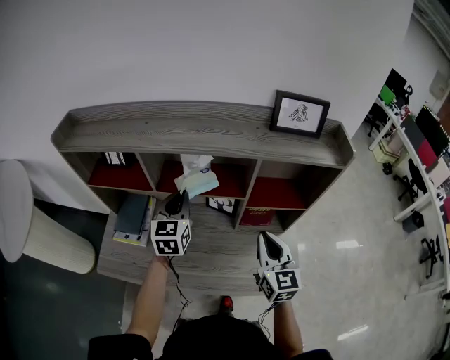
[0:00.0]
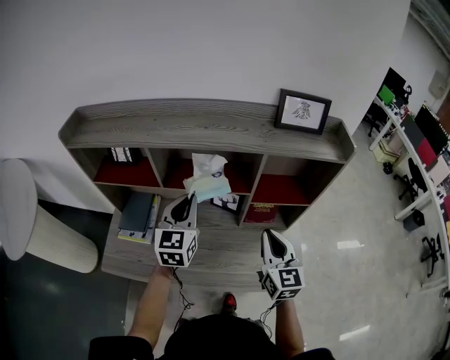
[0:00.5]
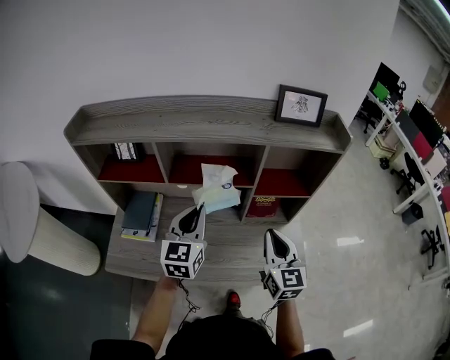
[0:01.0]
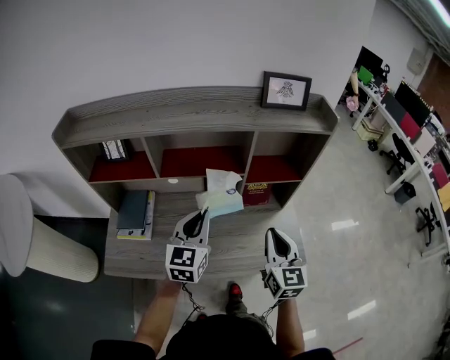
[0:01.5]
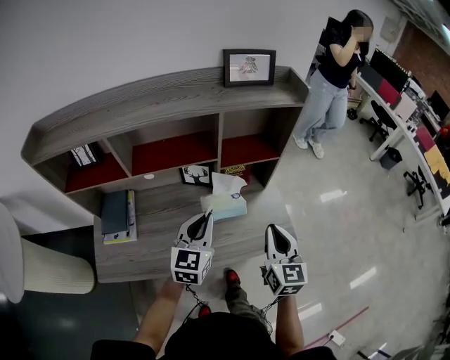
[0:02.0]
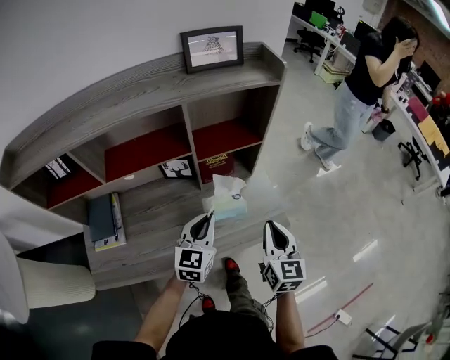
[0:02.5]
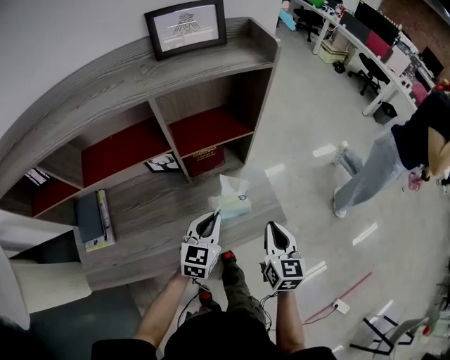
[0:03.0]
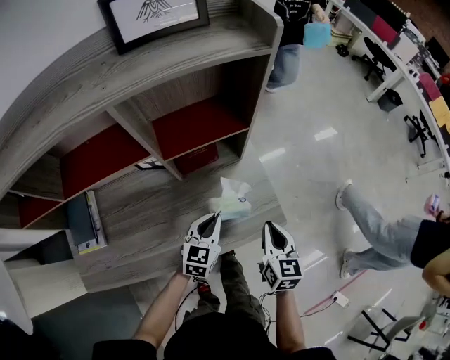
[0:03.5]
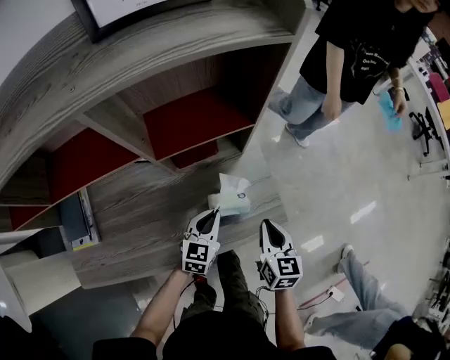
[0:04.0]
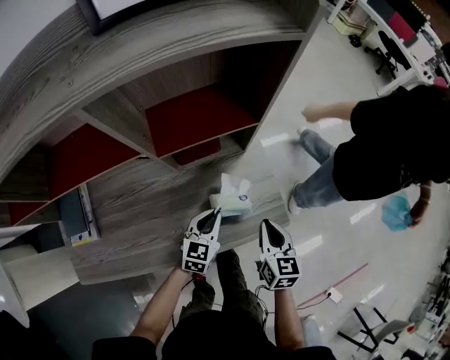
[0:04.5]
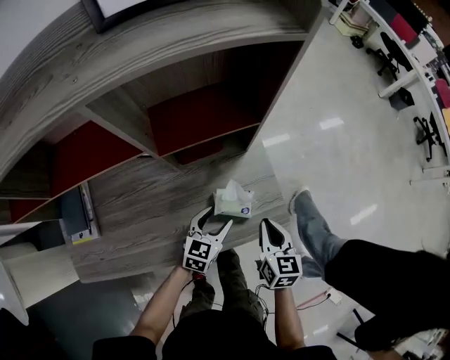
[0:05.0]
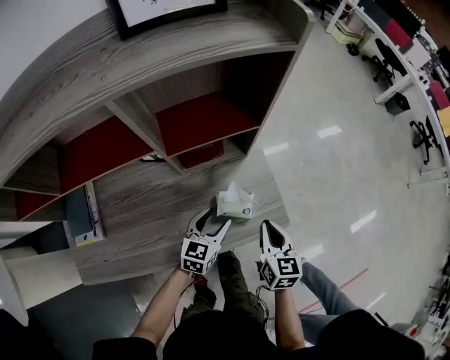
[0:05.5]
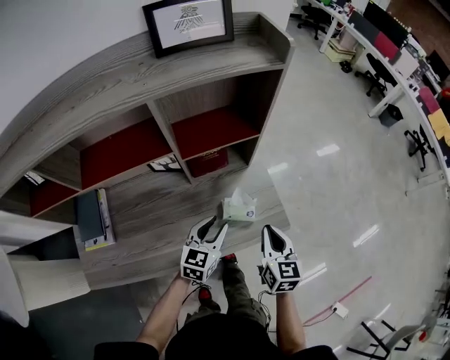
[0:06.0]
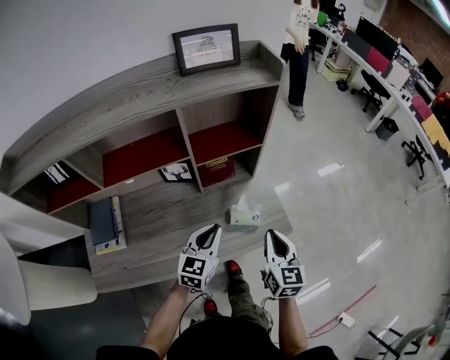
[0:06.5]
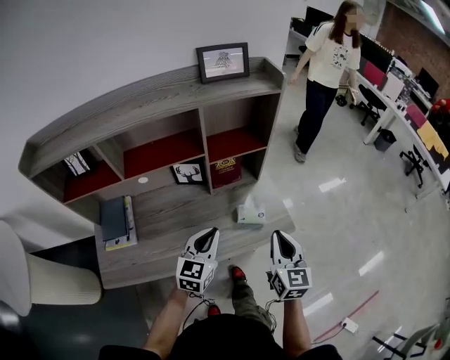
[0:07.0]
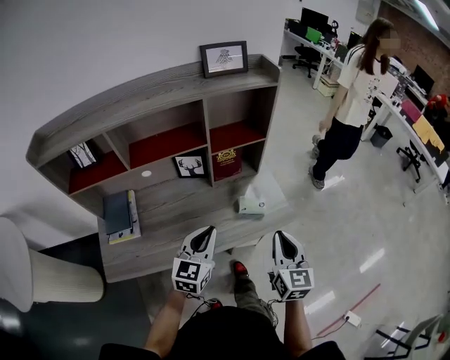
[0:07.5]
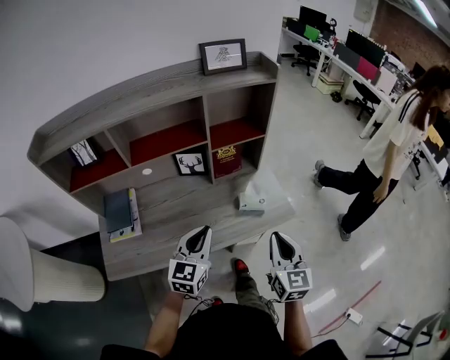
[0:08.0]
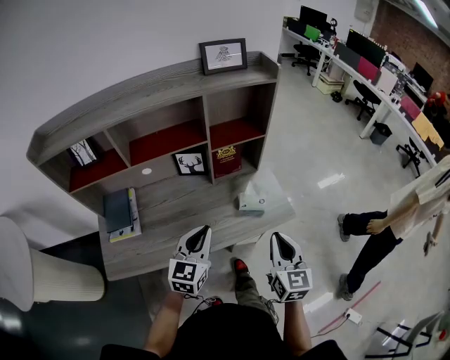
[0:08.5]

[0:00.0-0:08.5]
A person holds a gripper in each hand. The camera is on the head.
0:00.0 to 0:02.0: Both grippers move backward and to the right, approximately 15 cm. The left gripper turns by approximately 30 degrees, while the right gripper turns by roughly 20 degrees.
0:02.0 to 0:04.0: The grippers both shift downward and to the right by about 25 cm. The left gripper changes its angle by approximately 20 degrees; the right gripper changes its angle by approximately 20 degrees.
0:04.0 to 0:06.5: Both grippers move upward and backward, roughly 15 cm. The left gripper opens, then closes once more.
0:06.5 to 0:08.5: The right gripper travels backward and upward by about 15 cm, while the left gripper shifts about 15 cm backward, upward and to the left.

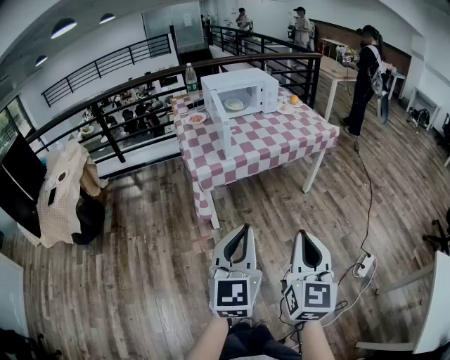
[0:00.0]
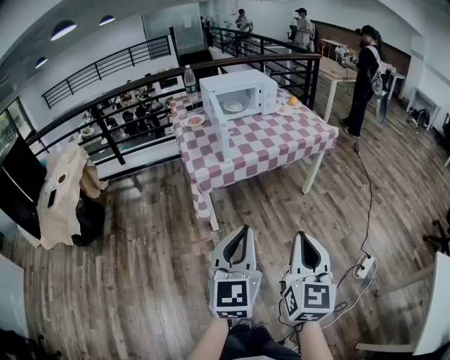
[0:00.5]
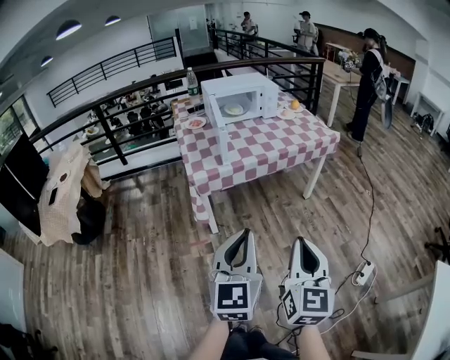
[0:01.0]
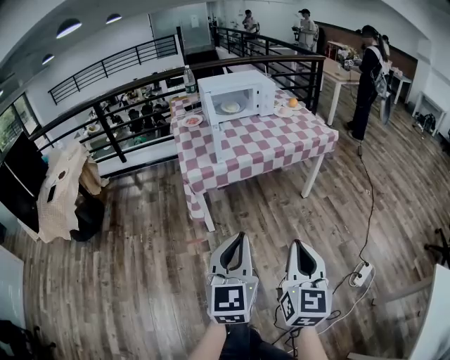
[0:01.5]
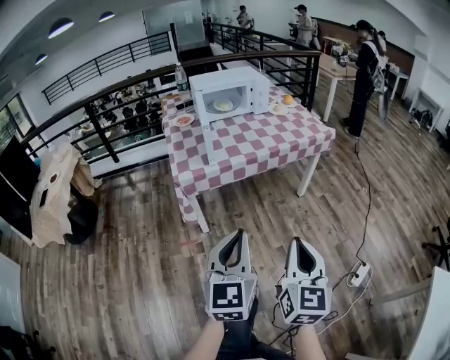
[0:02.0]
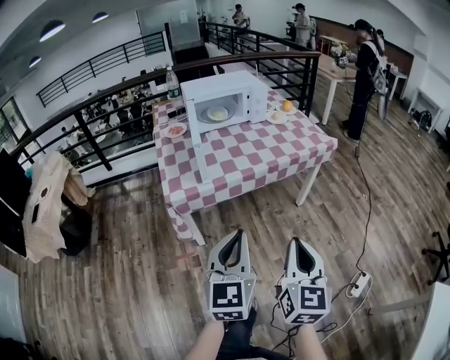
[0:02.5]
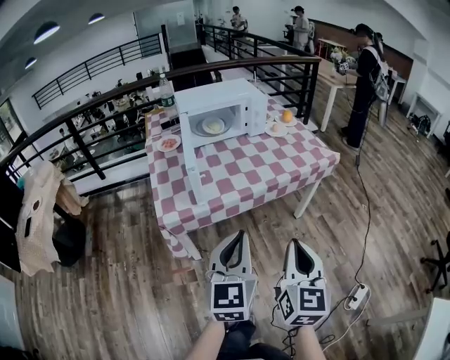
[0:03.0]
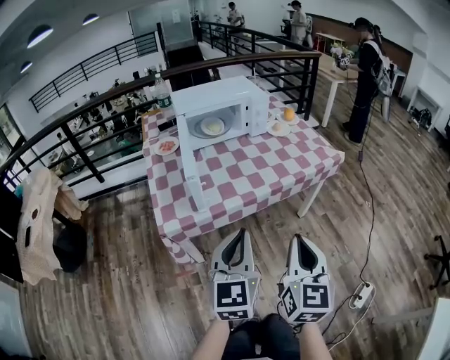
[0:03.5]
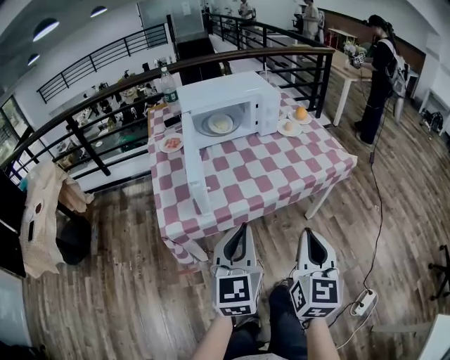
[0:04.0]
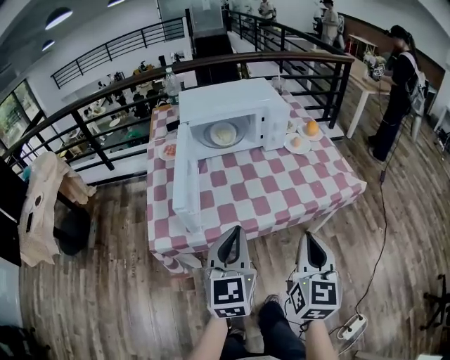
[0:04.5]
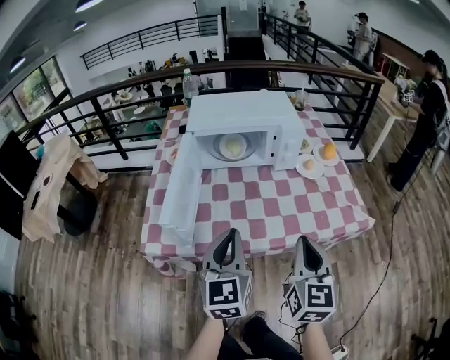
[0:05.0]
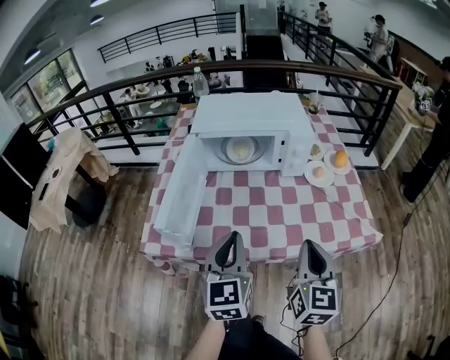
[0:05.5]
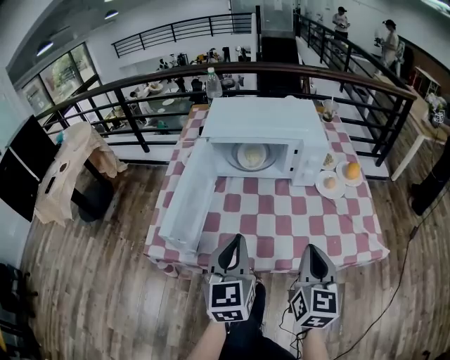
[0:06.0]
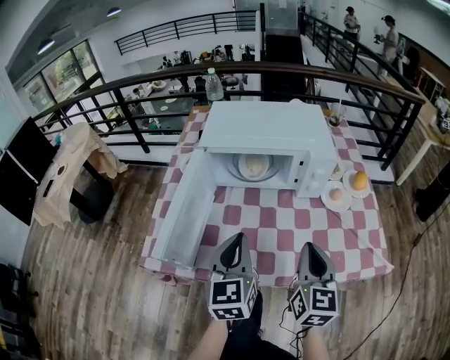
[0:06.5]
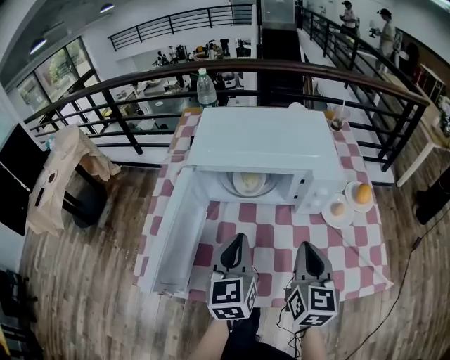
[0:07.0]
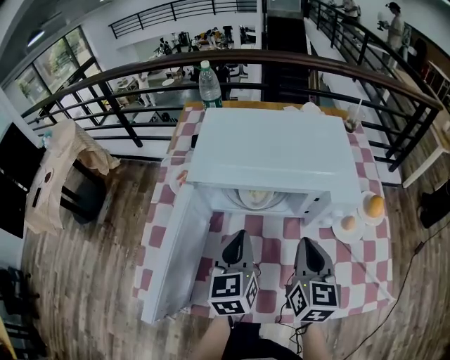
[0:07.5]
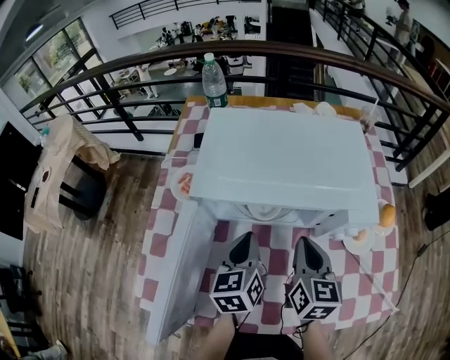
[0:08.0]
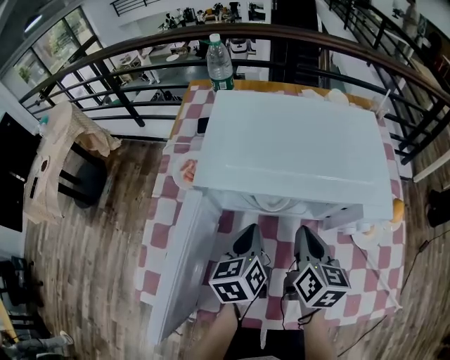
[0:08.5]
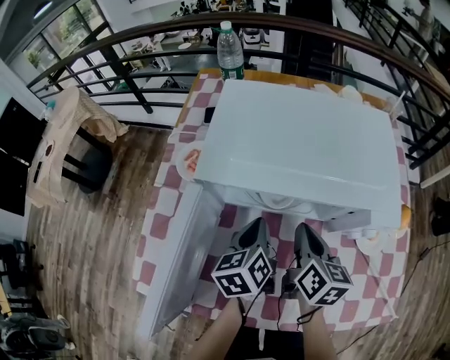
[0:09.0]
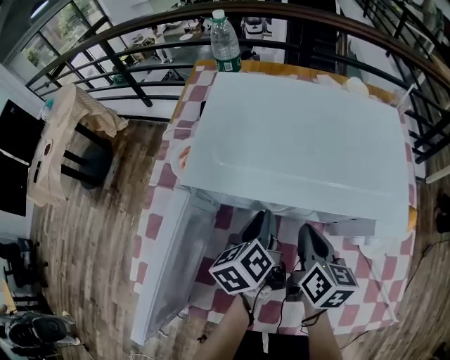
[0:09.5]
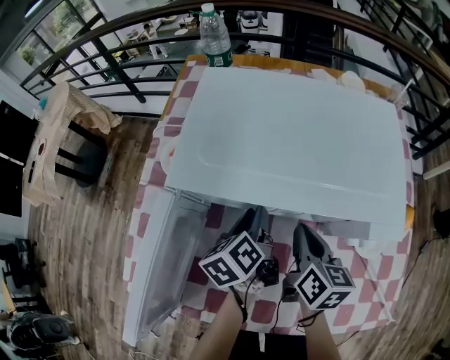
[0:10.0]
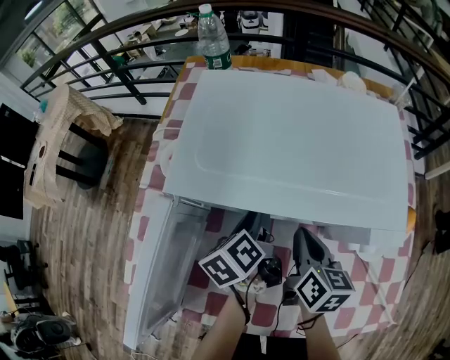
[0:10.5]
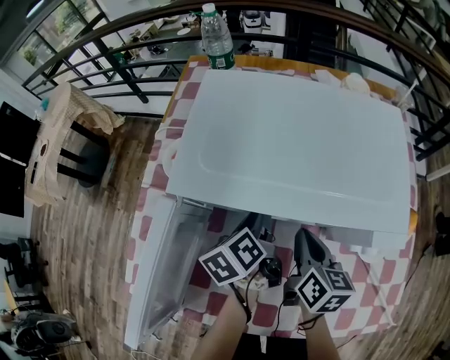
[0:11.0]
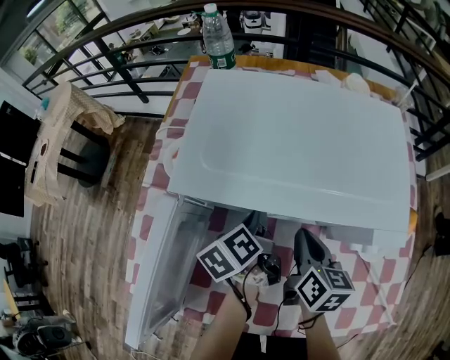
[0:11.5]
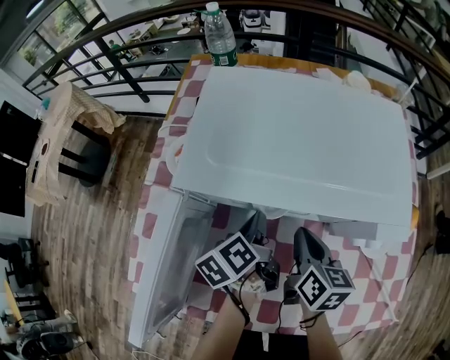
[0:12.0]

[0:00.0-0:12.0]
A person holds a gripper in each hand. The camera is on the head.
0:00.0 to 0:02.0: The grippers both shift to the right and forward by some 10 cm.
0:02.0 to 0:04.0: Both grippers move forward, some 30 cm.
0:04.0 to 0:06.0: Both grippers move forward, some 25 cm. The right gripper changes its angle by some 20 degrees. The left gripper rotates about 30 degrees.
0:06.0 to 0:08.0: Both grippers travel together forward, approximately 30 cm. The left gripper turns by roughly 20 degrees.
0:08.0 to 0:10.0: The left gripper goes some 10 cm downward and forward, rotates roughly 30 degrees, and opens, while the right gripper shifts about 5 cm downward.
0:10.0 to 0:12.0: The left gripper closes up.

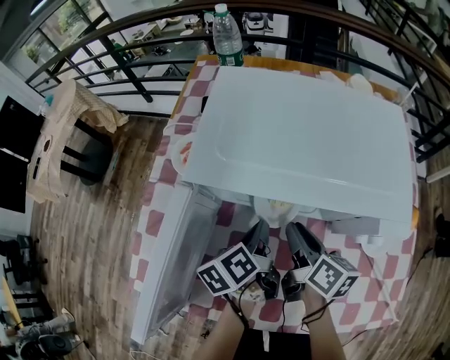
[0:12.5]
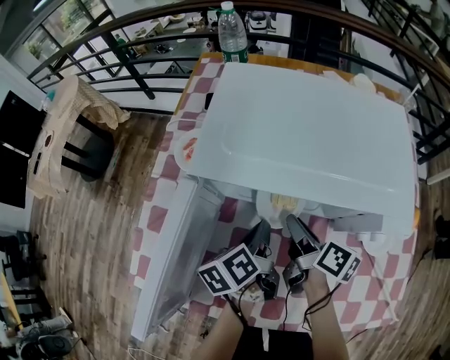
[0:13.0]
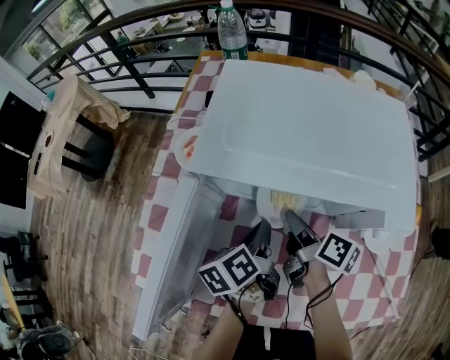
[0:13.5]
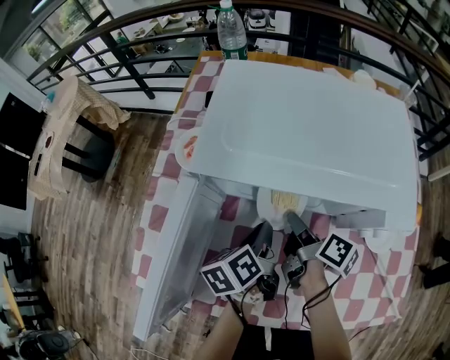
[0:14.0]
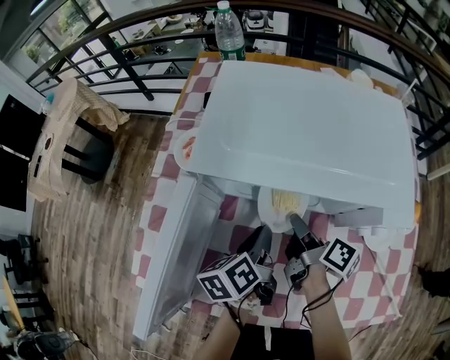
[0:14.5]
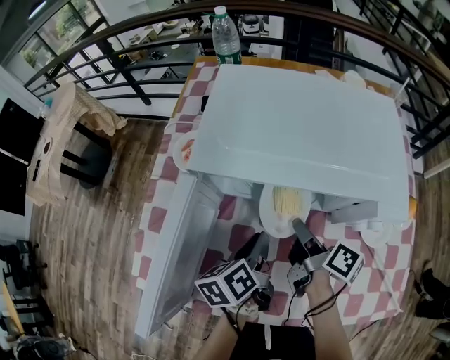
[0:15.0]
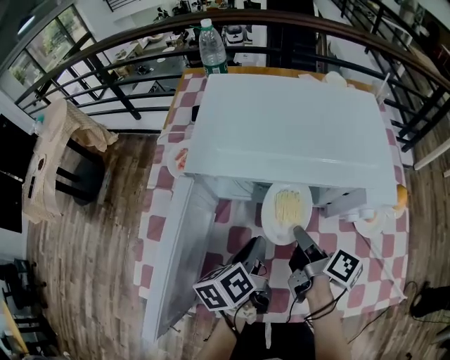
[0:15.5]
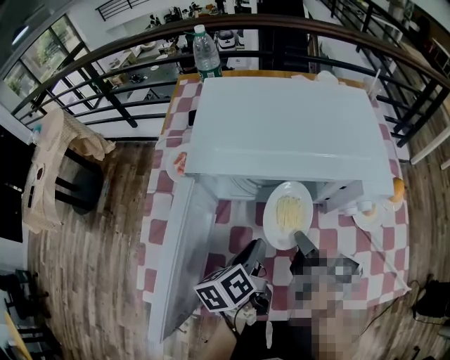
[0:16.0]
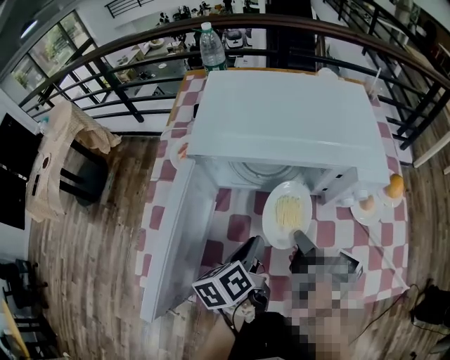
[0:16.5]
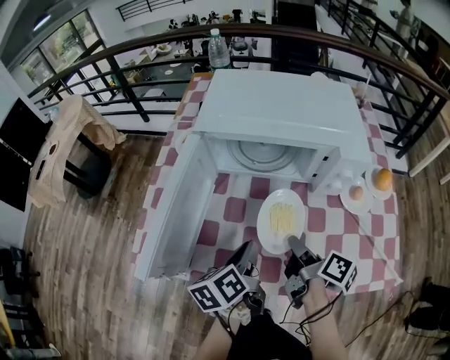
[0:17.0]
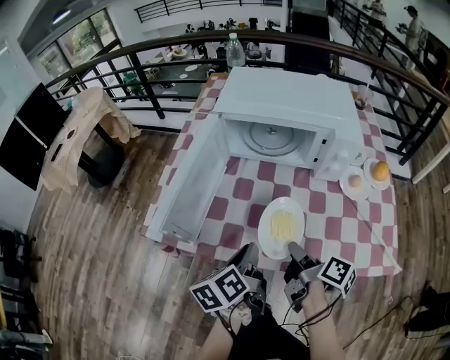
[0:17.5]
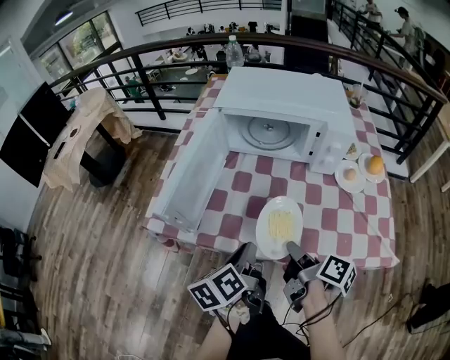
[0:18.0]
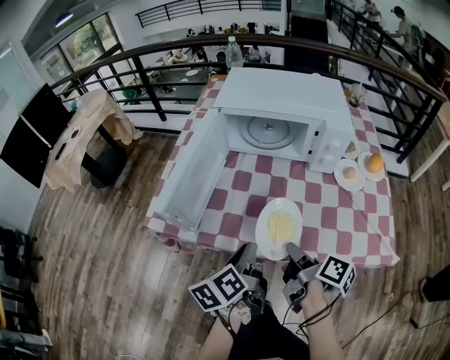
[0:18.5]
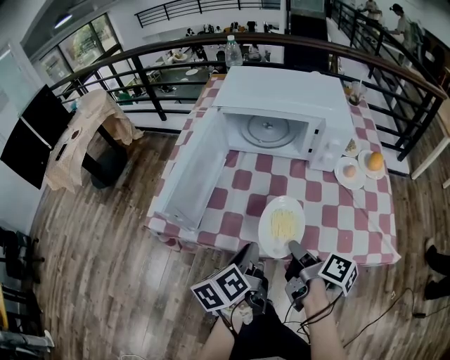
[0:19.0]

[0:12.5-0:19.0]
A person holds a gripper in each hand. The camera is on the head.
0:12.5 to 0:14.5: The right gripper changes its angle by roughly 20 degrees, and closes its fingers.
0:14.5 to 0:17.0: The two grippers go about 15 cm backward.
0:17.0 to 0:19.0: The grippers both shift backward by some 15 cm.
